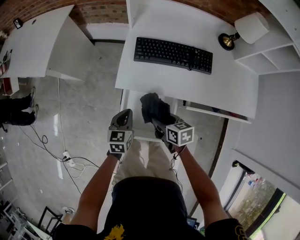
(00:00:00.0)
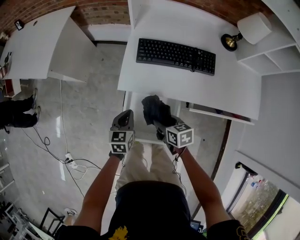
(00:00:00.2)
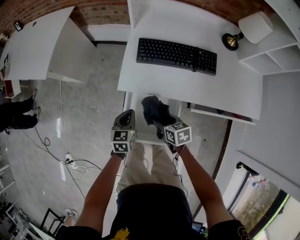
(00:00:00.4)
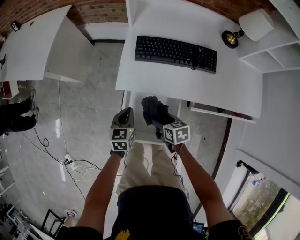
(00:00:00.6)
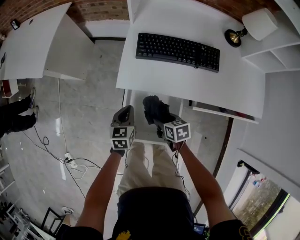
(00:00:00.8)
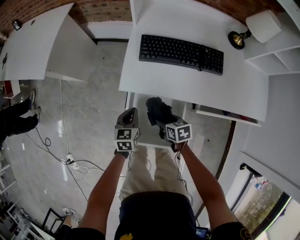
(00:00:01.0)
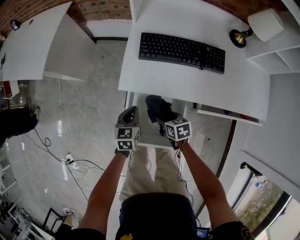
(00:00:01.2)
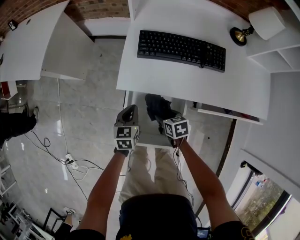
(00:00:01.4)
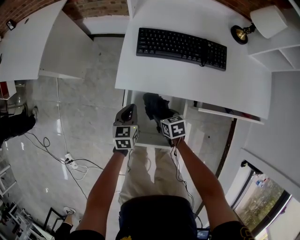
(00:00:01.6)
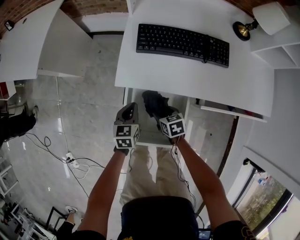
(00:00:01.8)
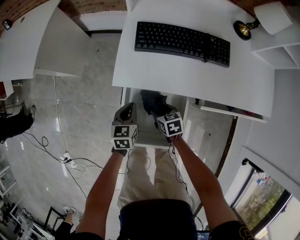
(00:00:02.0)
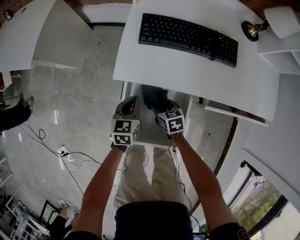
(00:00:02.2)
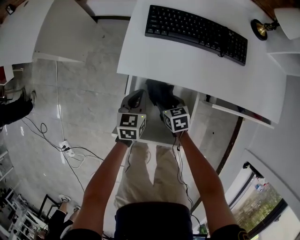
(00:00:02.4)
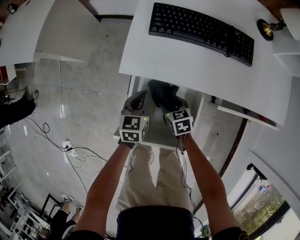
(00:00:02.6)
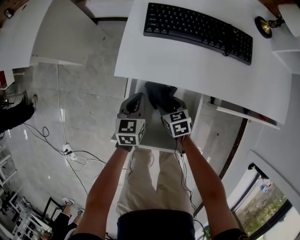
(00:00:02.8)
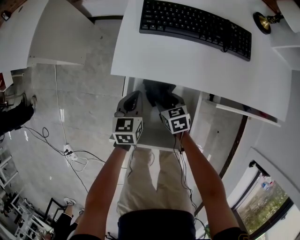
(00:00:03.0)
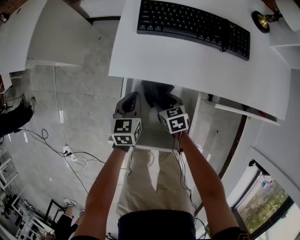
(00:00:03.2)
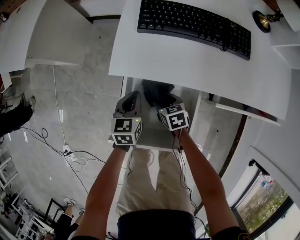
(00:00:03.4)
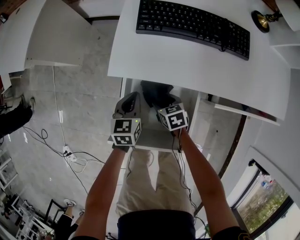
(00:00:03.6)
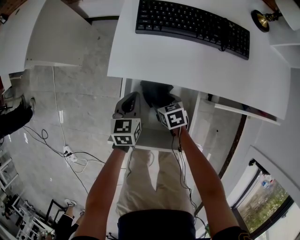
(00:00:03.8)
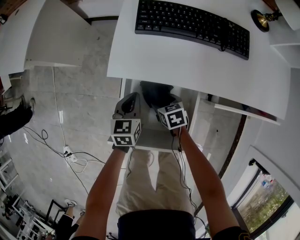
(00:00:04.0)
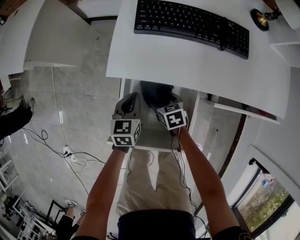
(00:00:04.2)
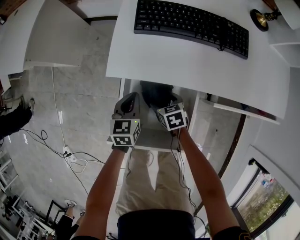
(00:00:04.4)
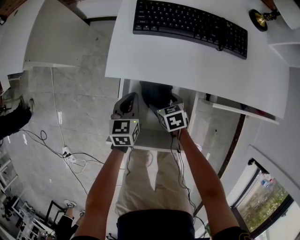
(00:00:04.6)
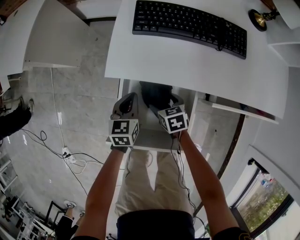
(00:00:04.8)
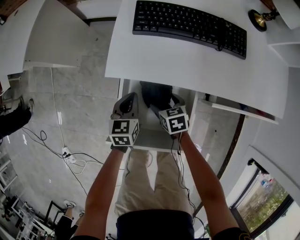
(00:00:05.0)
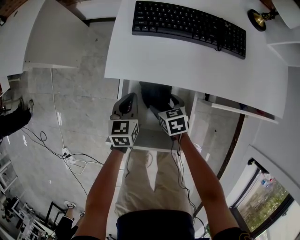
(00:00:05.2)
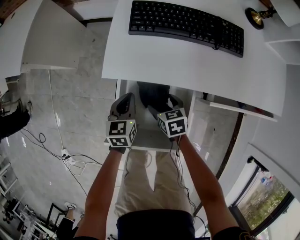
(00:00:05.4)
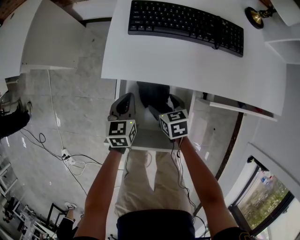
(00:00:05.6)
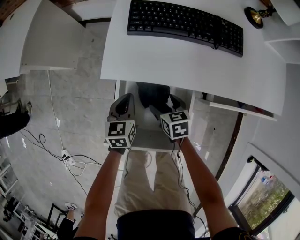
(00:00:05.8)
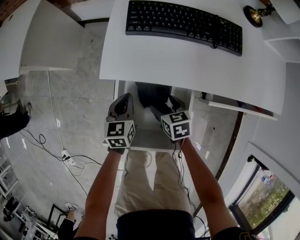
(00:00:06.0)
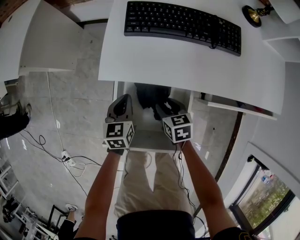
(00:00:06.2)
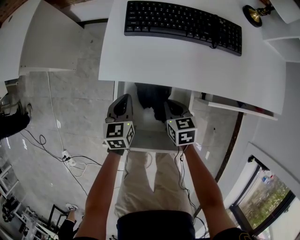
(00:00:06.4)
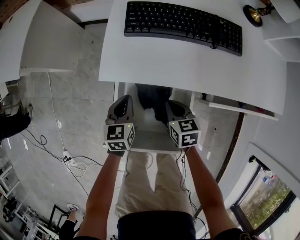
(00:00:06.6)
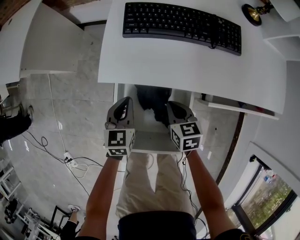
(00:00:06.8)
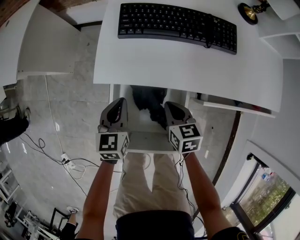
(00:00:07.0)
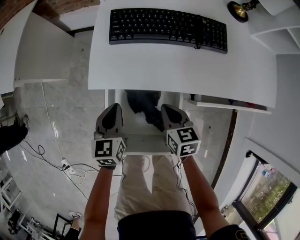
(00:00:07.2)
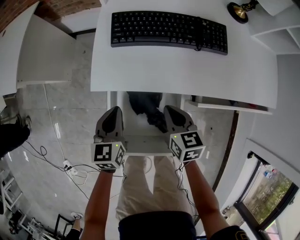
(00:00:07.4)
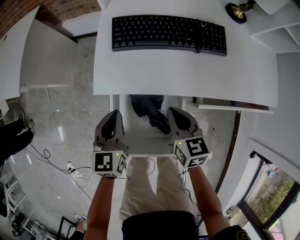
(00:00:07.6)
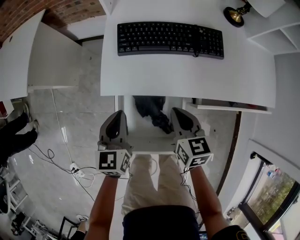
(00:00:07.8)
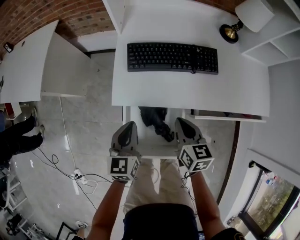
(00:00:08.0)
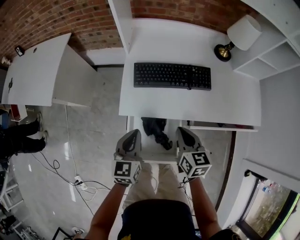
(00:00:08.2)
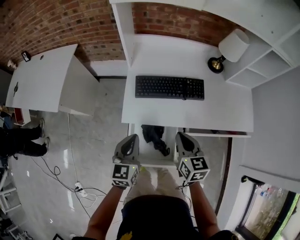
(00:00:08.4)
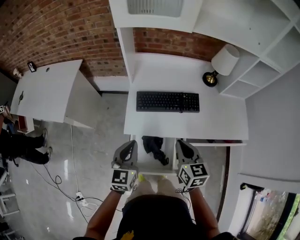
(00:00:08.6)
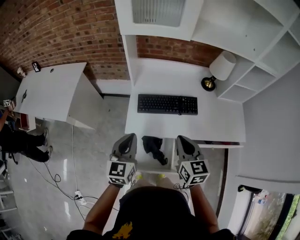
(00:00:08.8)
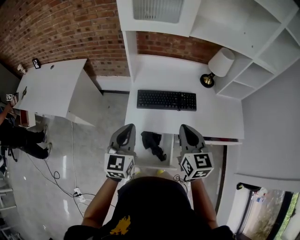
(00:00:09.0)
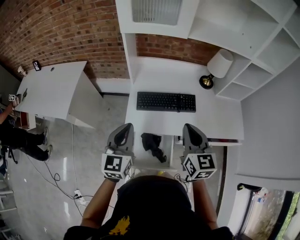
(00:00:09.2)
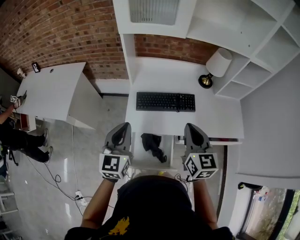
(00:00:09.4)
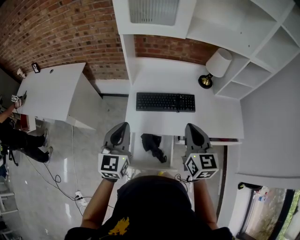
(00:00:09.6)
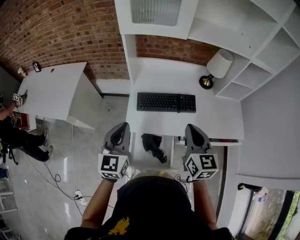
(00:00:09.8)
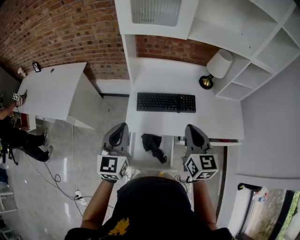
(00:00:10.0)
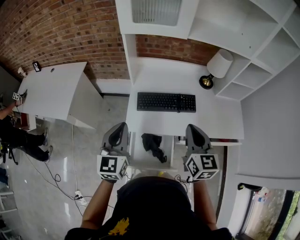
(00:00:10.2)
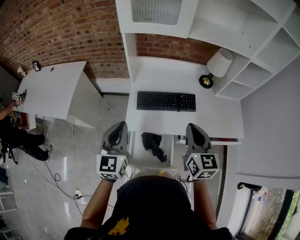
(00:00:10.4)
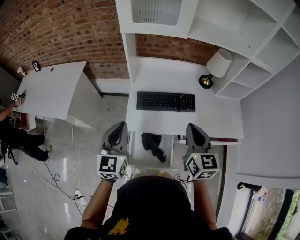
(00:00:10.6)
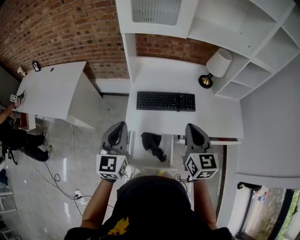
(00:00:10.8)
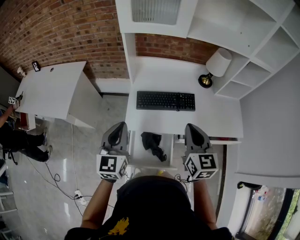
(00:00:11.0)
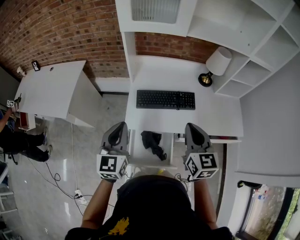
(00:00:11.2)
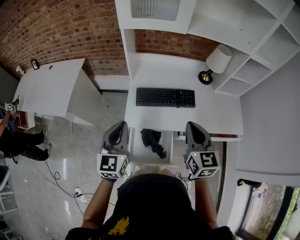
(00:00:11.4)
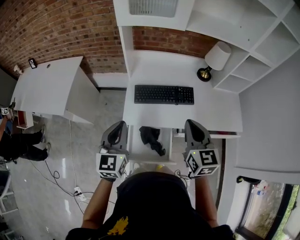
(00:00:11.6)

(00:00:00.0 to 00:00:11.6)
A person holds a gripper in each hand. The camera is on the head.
00:00:00.0 - 00:00:01.4: The right gripper heads downward, covering roughly 15 cm. The left gripper moves downward, about 10 cm.
00:00:01.4 - 00:00:02.8: Both grippers move downward, roughly 10 cm.
00:00:02.8 - 00:00:04.4: The grippers make only small movements.
00:00:04.4 - 00:00:05.8: The right gripper changes place by about 5 cm.
00:00:05.8 - 00:00:07.2: The left gripper shifts some 5 cm upward. The right gripper moves upward and to the right, some 10 cm, and closes up.
00:00:07.2 - 00:00:08.8: Both grippers move upward, roughly 40 cm. The right gripper rotates about 20 degrees.
00:00:08.8 - 00:00:10.2: Both grippers move upward, about 5 cm.
00:00:10.2 - 00:00:11.6: The grippers move only a little.

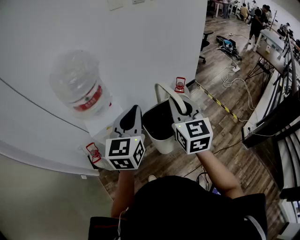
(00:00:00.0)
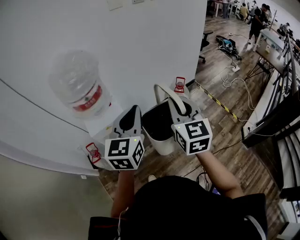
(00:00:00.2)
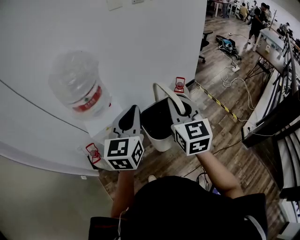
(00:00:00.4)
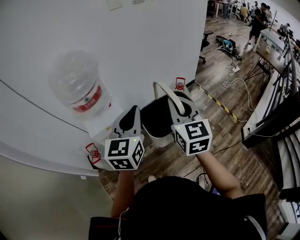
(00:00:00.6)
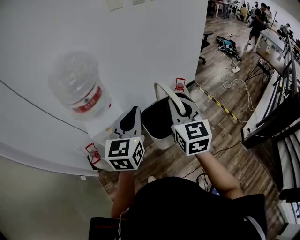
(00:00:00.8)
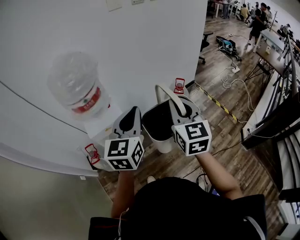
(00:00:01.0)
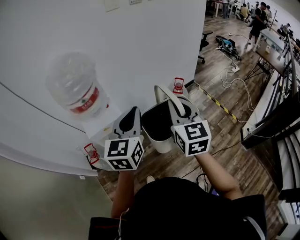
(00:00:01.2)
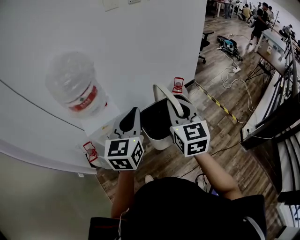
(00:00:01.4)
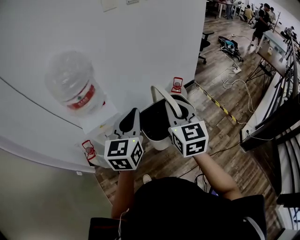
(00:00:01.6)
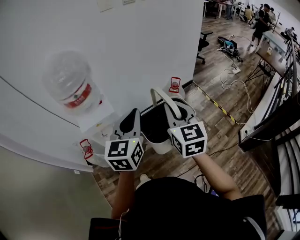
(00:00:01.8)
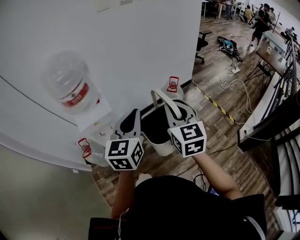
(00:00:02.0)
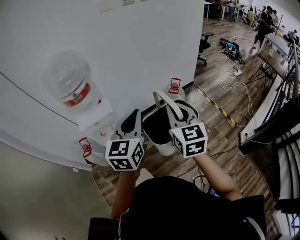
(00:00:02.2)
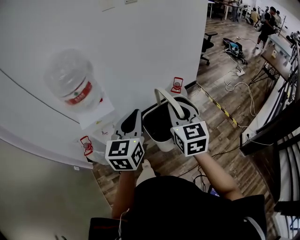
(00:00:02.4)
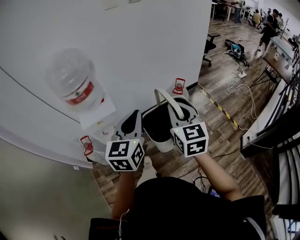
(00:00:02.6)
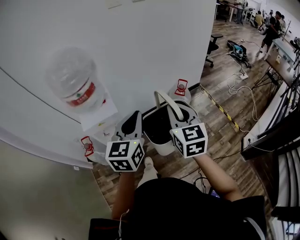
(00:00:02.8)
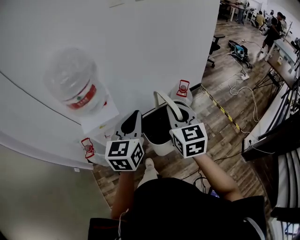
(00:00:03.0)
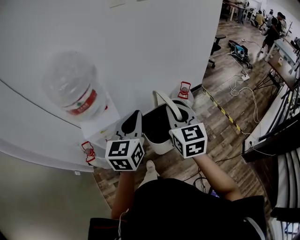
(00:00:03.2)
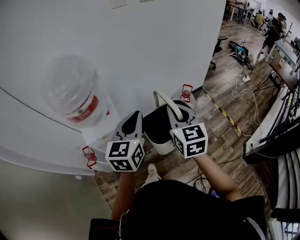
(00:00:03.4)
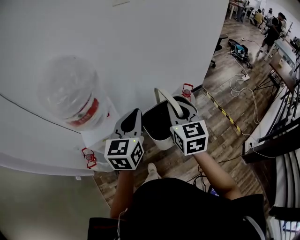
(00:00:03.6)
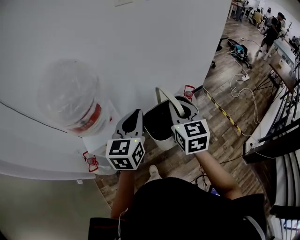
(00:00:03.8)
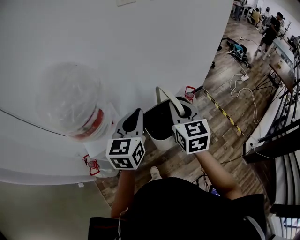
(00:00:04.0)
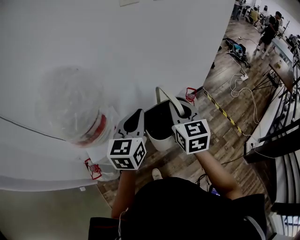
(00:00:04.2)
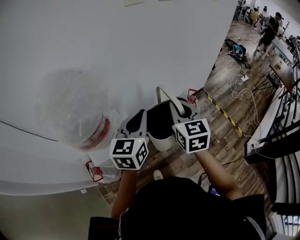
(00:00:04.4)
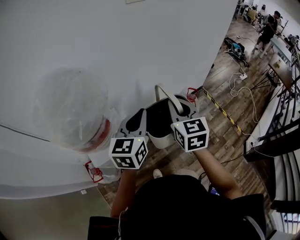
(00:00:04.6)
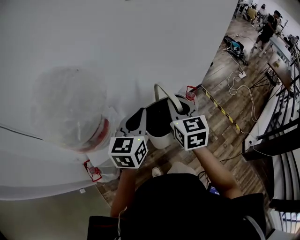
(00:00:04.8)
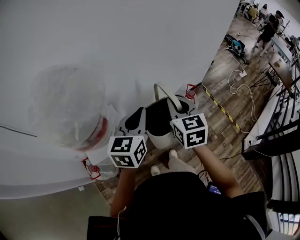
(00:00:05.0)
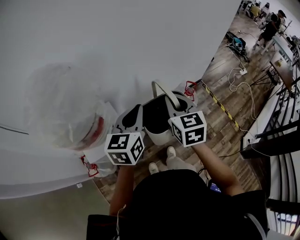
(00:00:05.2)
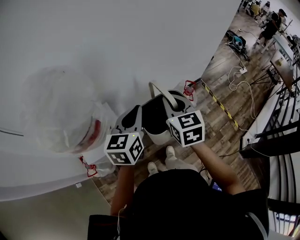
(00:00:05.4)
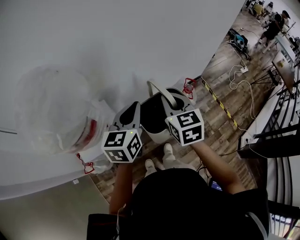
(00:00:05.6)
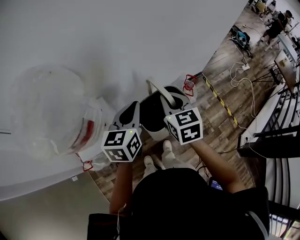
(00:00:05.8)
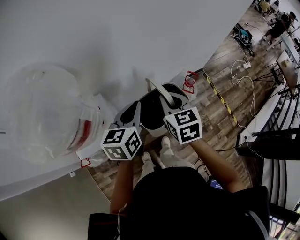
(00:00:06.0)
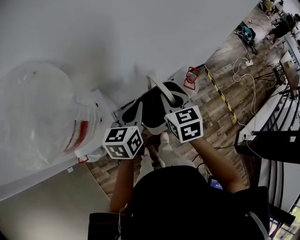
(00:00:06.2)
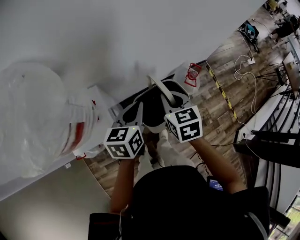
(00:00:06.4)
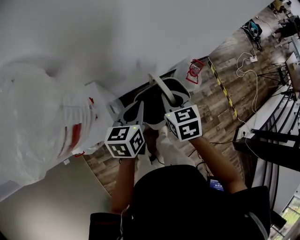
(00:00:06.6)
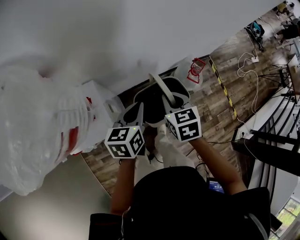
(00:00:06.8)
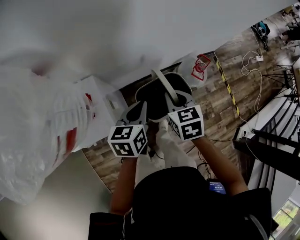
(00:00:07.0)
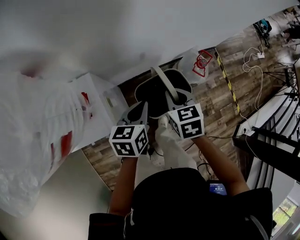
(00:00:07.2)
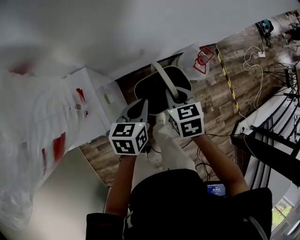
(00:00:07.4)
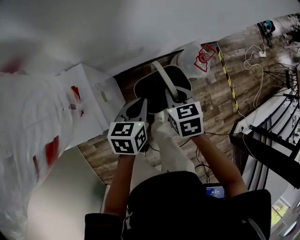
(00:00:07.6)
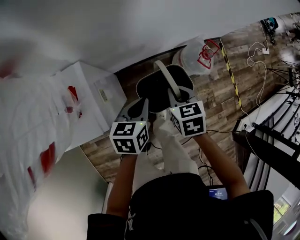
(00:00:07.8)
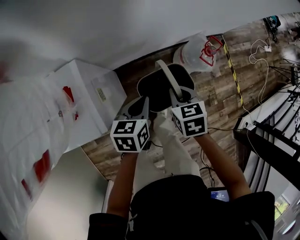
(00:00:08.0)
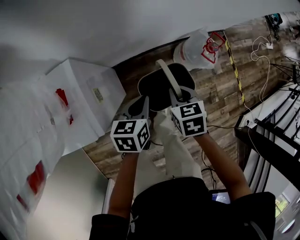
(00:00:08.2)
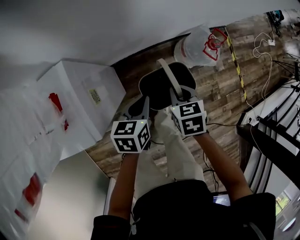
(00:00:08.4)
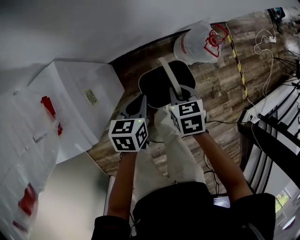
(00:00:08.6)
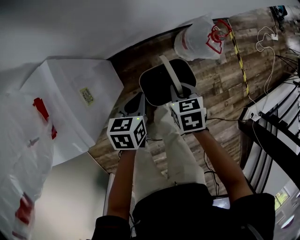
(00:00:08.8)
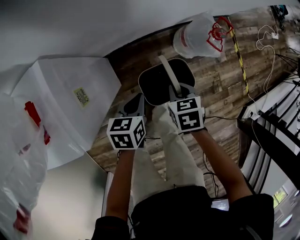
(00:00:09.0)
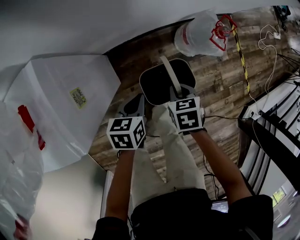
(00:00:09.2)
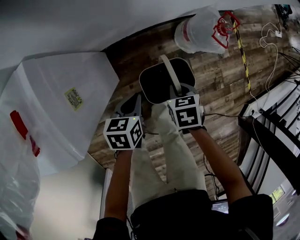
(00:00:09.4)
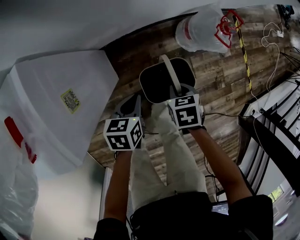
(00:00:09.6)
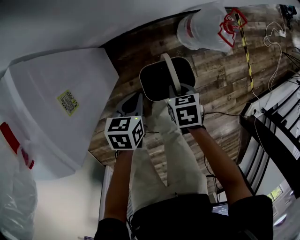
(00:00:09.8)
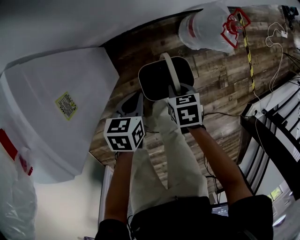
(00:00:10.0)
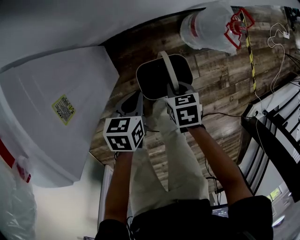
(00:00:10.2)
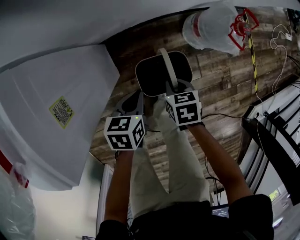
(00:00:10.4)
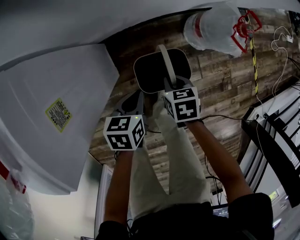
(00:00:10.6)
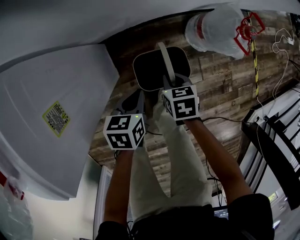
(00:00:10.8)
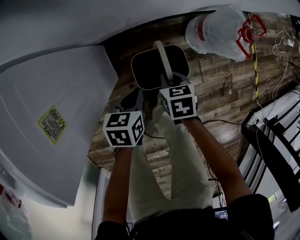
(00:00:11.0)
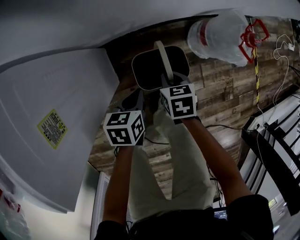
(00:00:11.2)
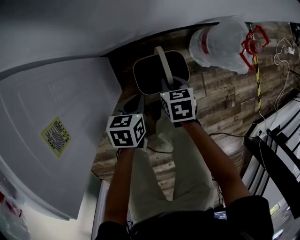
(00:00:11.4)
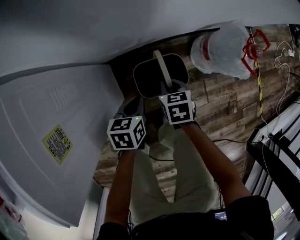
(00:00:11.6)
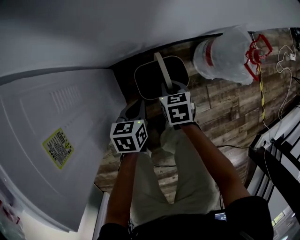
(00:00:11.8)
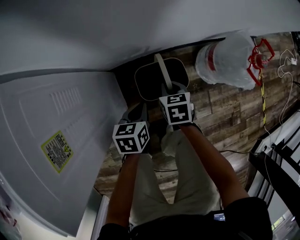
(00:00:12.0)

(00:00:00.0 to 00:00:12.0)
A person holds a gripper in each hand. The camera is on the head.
00:00:00.0 - 00:00:01.6: The left gripper changes place by some 5 cm.
00:00:01.6 - 00:00:03.0: The left gripper ends up some 5 cm from where it was; the right gripper is displaced forward by some 5 cm.
00:00:03.0 - 00:00:04.4: The grippers both shift forward and to the left by about 25 cm.
00:00:04.4 - 00:00:06.0: Both grippers travel together downward and forward, roughly 10 cm.
00:00:06.0 - 00:00:07.6: Both grippers travel together downward, approximately 25 cm. The left gripper swivels some 20 degrees. The right gripper changes its angle by some 20 degrees.
00:00:07.6 - 00:00:09.0: Both grippers travel together downward, approximately 20 cm.
00:00:09.0 - 00:00:10.4: Both grippers travel together downward, about 10 cm.
00:00:10.4 - 00:00:12.0: The right gripper moves downward, forward and to the left, some 15 cm. Meanwhile the left gripper goes roughly 15 cm downward and forward.
